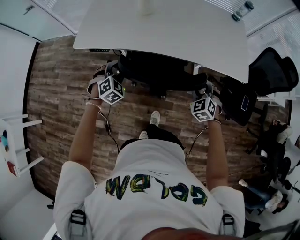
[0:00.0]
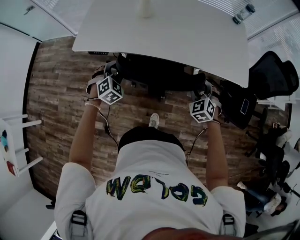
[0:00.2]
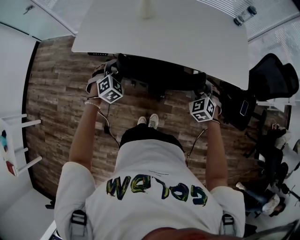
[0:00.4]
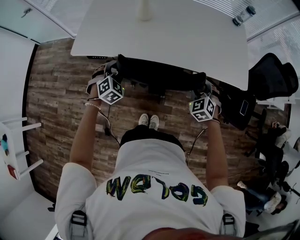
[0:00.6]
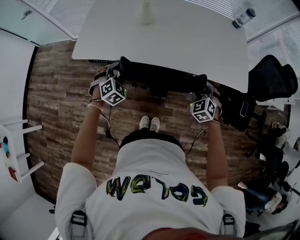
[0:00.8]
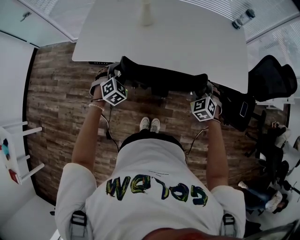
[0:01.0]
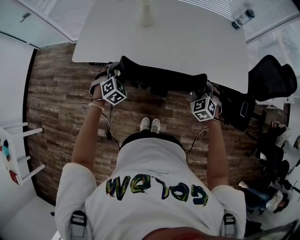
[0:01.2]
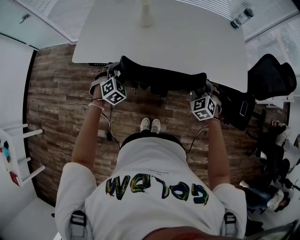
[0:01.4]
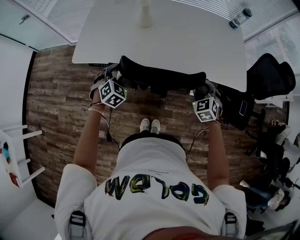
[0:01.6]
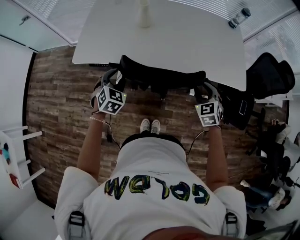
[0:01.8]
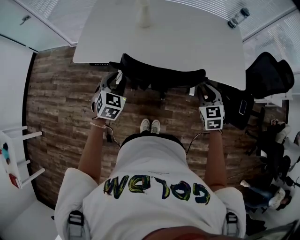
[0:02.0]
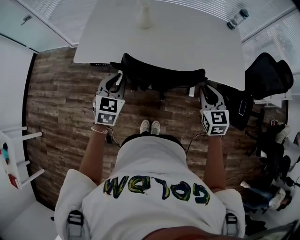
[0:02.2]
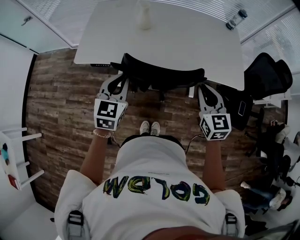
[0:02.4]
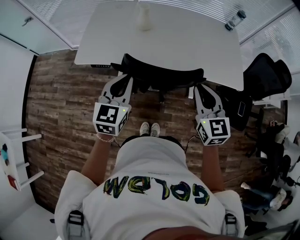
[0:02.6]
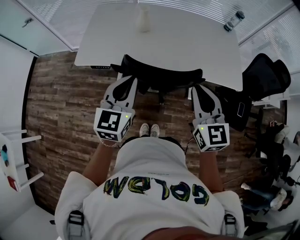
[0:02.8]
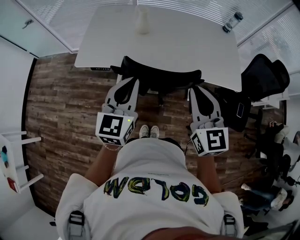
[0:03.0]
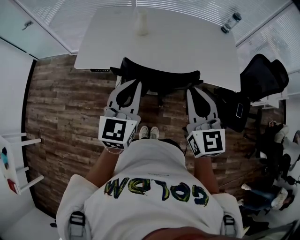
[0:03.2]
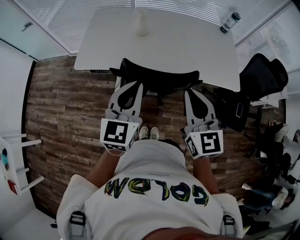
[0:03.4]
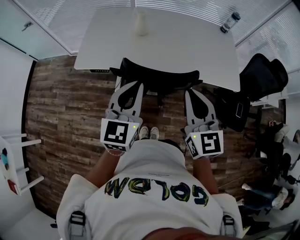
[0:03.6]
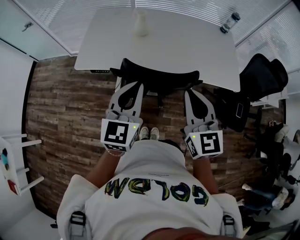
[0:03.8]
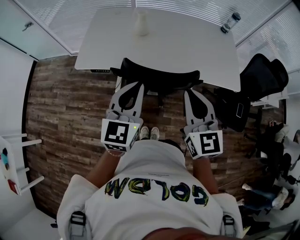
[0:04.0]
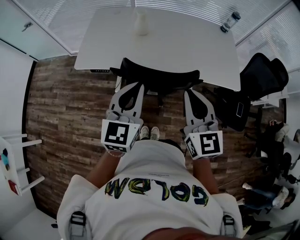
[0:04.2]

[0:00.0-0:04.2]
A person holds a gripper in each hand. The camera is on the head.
0:00.0 to 0:01.4: The two grippers go roughly 10 cm forward.
0:01.4 to 0:02.8: Both grippers travel together upward and backward, about 25 cm. The left gripper points its fingers roughly 30 degrees further upward, and closes its fingers, while the right gripper tips its fingers upward by roughly 30 degrees, and closes up.
0:02.8 to 0:04.2: The grippers make only small movements.

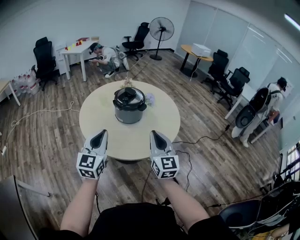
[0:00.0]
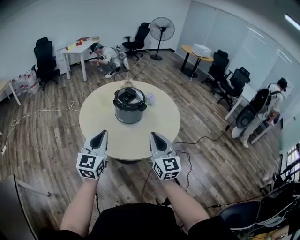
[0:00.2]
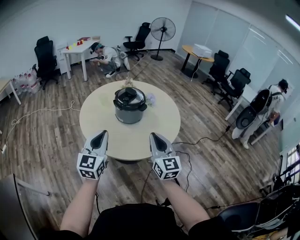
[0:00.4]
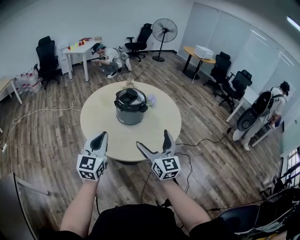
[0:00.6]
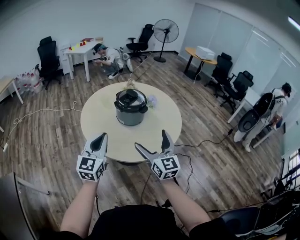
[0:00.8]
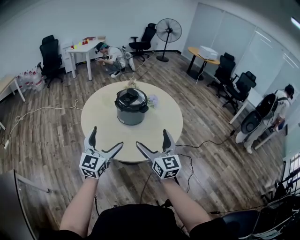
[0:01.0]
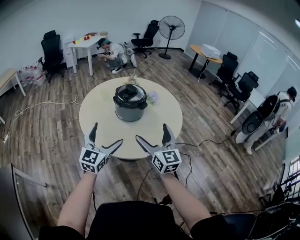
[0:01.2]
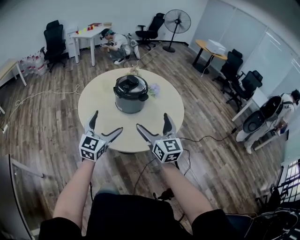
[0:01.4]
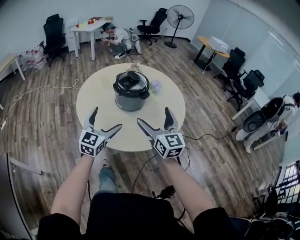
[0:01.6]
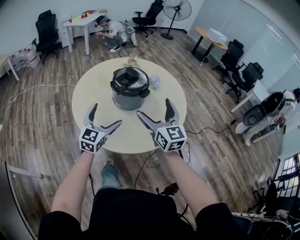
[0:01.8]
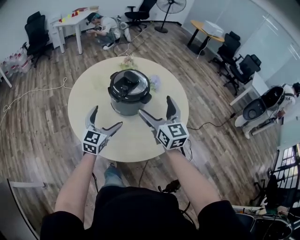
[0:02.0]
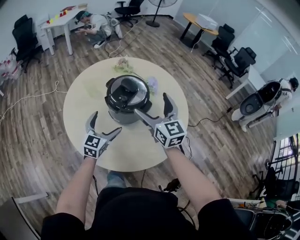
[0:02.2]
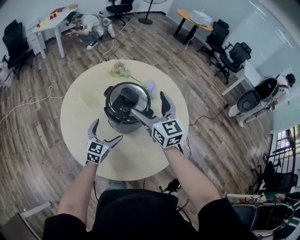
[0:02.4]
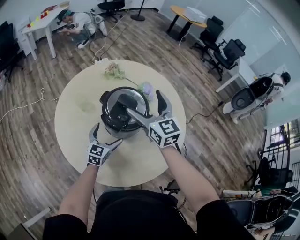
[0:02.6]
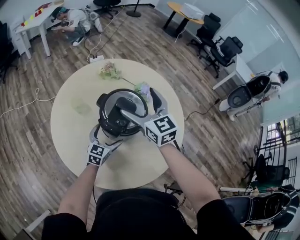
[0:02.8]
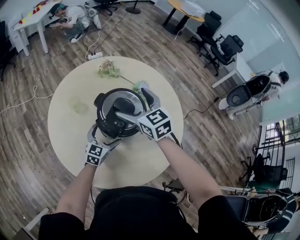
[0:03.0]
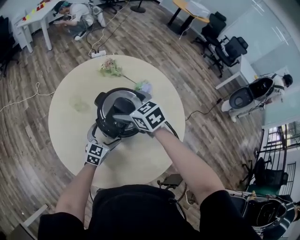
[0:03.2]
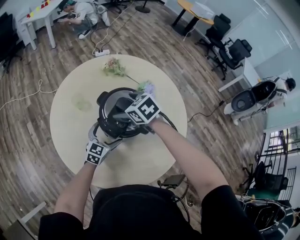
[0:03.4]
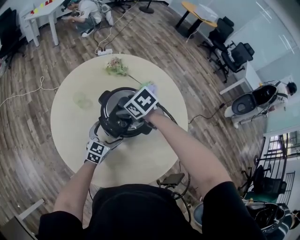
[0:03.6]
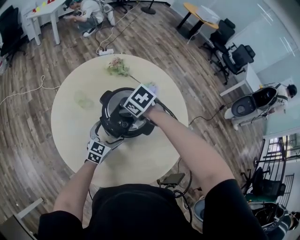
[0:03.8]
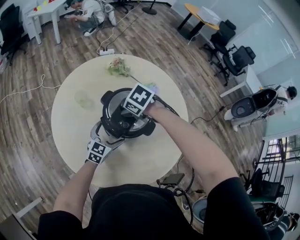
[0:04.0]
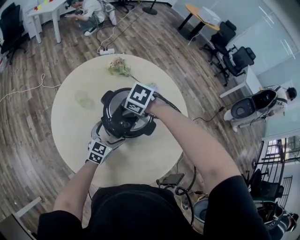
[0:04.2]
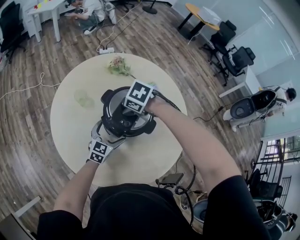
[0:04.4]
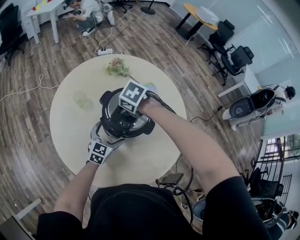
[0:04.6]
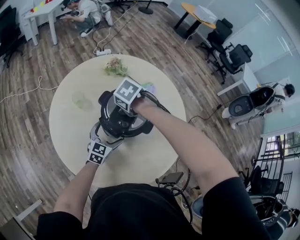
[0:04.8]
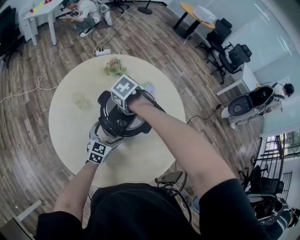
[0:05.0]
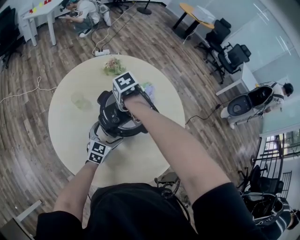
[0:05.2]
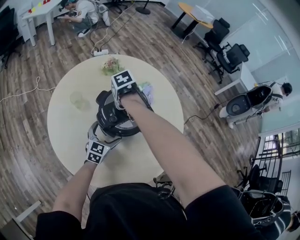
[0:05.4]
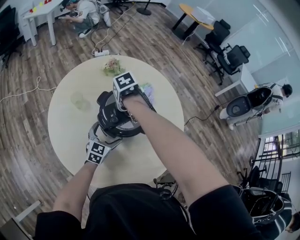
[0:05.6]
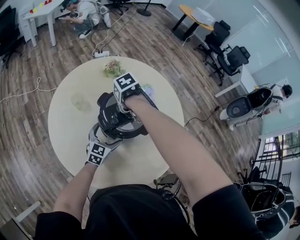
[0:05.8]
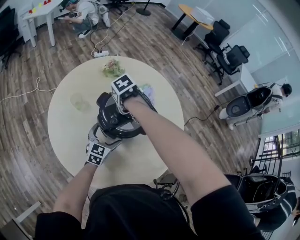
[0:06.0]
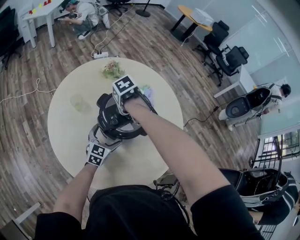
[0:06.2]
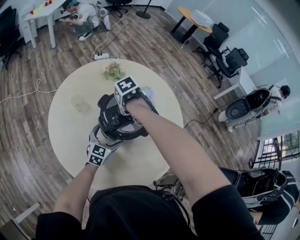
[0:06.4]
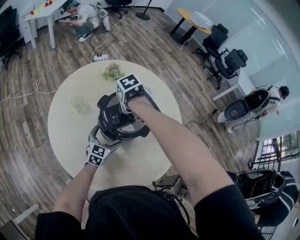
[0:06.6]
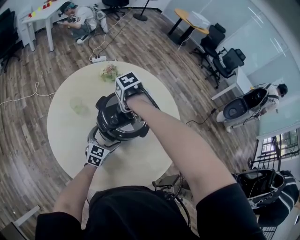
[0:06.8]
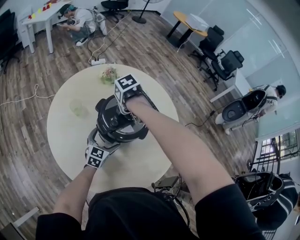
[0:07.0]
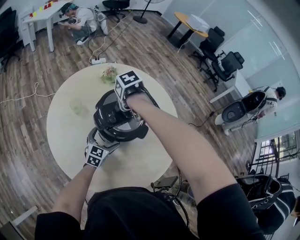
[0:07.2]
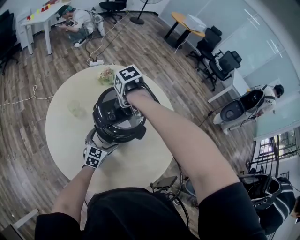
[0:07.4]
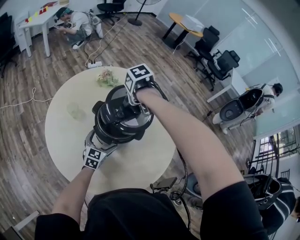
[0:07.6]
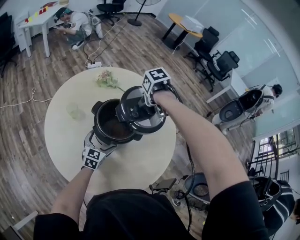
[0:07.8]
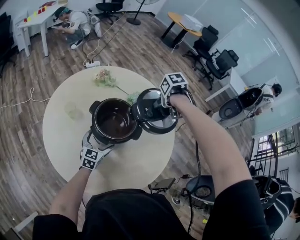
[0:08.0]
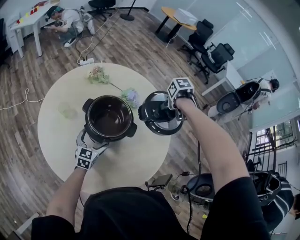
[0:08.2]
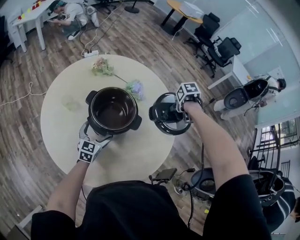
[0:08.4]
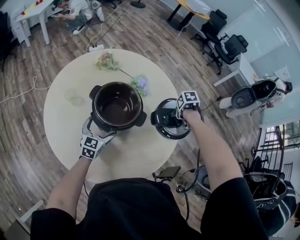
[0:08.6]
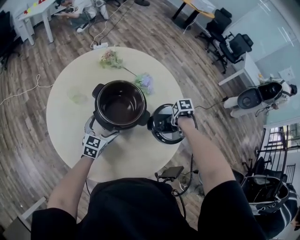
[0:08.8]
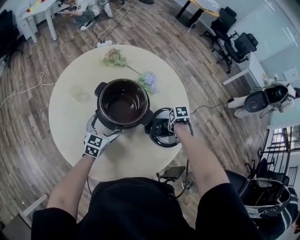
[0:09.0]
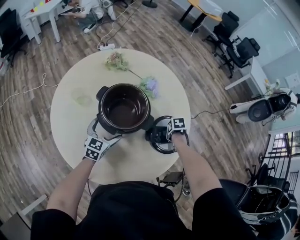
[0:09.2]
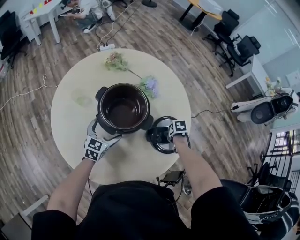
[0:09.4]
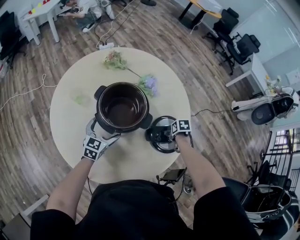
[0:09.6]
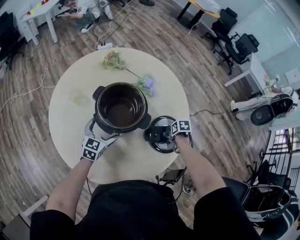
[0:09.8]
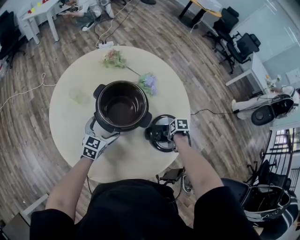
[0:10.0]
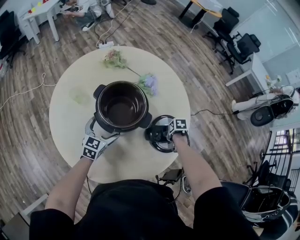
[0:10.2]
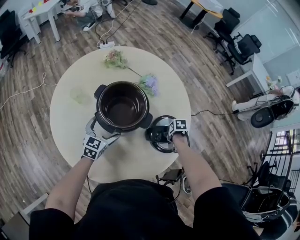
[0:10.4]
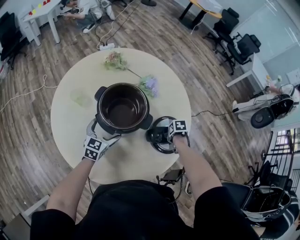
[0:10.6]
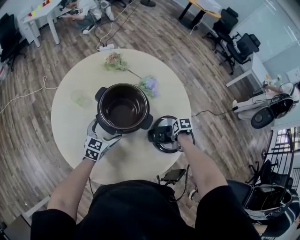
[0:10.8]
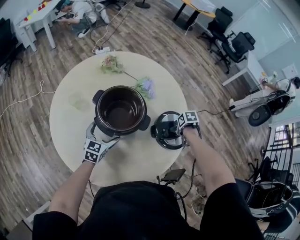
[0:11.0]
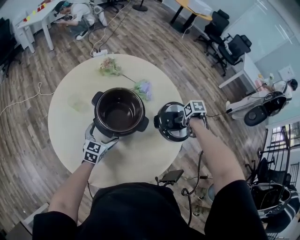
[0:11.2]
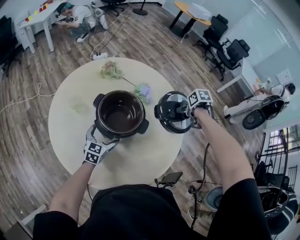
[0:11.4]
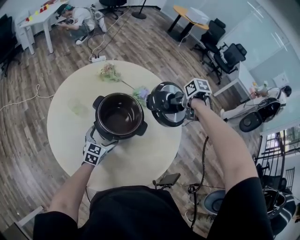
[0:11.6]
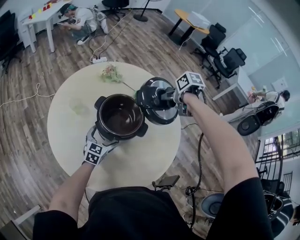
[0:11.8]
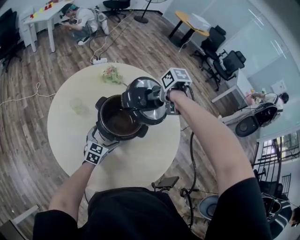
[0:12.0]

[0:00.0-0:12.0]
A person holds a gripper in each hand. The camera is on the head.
0:00.0 to 0:01.6: The left gripper shifts roughly 15 cm forward, downward and to the right, and opens. The right gripper is displaced forward by roughly 10 cm, and opens its fingers.
0:01.6 to 0:03.0: The right gripper travels forward and to the left by roughly 40 cm, and turns by about 30 degrees; the left gripper goes approximately 40 cm forward and downward, and swivels approximately 30 degrees.
0:03.0 to 0:04.4: The right gripper goes approximately 10 cm downward, tips its fingers downward by some 50 degrees, and closes up.
0:04.4 to 0:06.0: The right gripper changes its angle by about 40 degrees.
0:06.0 to 0:07.6: The right gripper travels upward by some 10 cm.
0:07.6 to 0:09.0: The right gripper changes place by about 35 cm, and rotates some 20 degrees.
0:09.0 to 0:10.4: The right gripper is displaced downward by about 5 cm.
0:10.4 to 0:12.0: The right gripper shifts roughly 30 cm upward, and changes its angle by approximately 20 degrees.

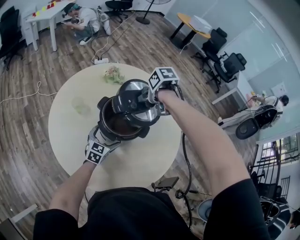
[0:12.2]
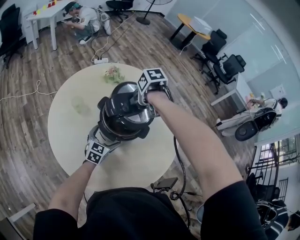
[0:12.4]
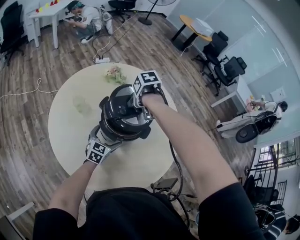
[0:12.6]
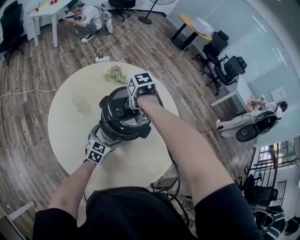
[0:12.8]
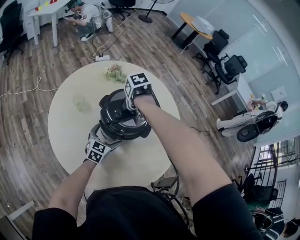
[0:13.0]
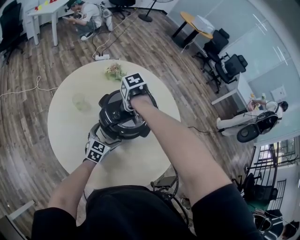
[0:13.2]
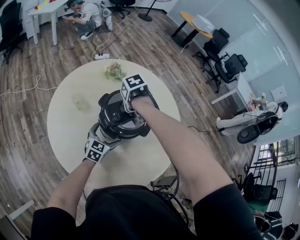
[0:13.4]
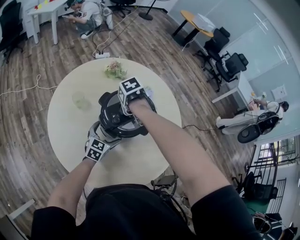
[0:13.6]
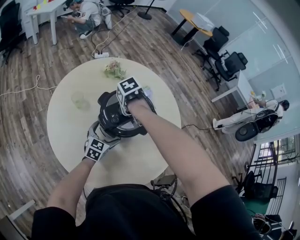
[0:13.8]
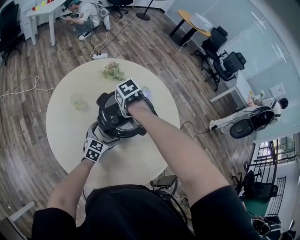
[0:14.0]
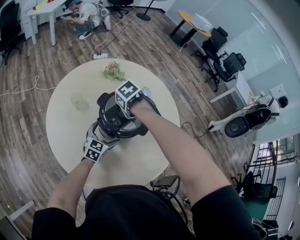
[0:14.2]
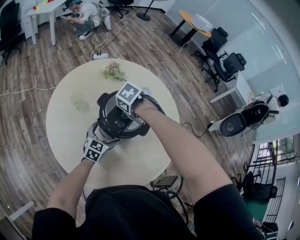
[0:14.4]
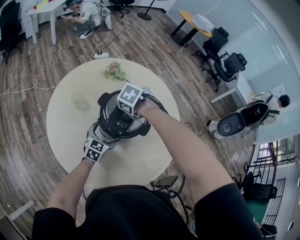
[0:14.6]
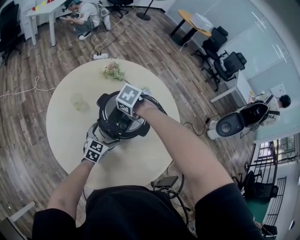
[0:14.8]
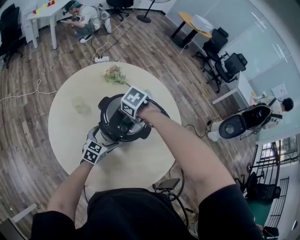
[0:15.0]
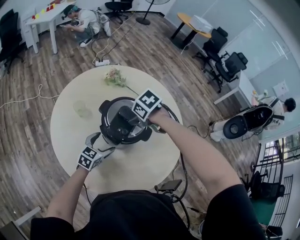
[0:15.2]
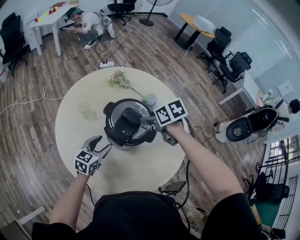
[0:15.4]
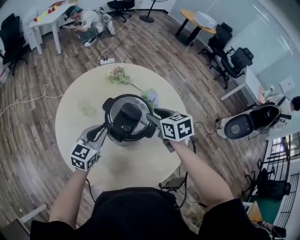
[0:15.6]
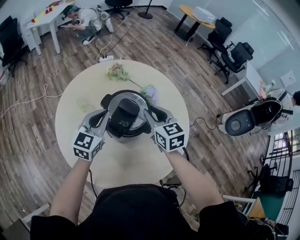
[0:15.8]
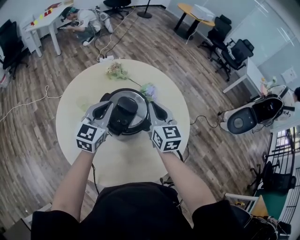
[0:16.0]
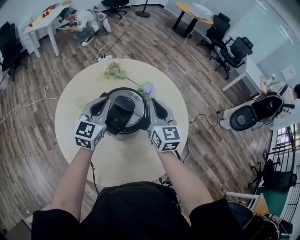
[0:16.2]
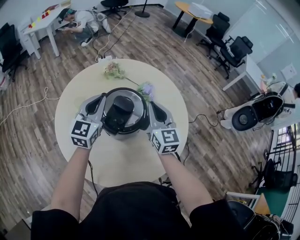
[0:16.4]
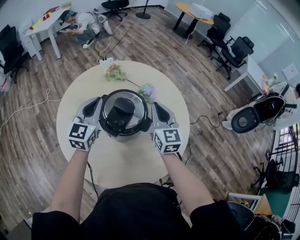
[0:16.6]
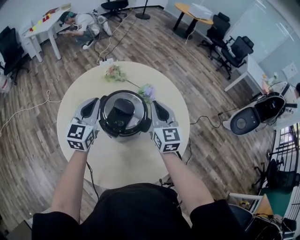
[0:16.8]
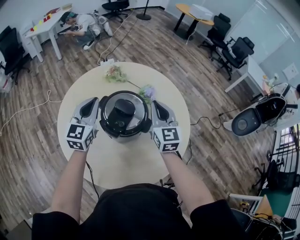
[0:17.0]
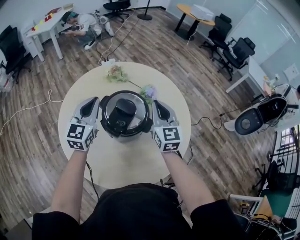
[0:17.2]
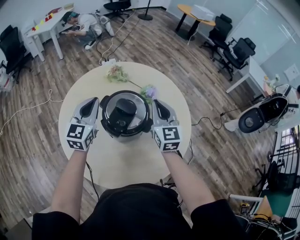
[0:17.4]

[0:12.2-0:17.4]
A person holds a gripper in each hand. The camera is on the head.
0:12.2 to 0:14.0: The right gripper moves some 10 cm, and rotates approximately 20 degrees.
0:14.0 to 0:15.6: The two grippers go roughly 10 cm upward. The right gripper tilts its fingers roughly 40 degrees upward; the left gripper closes.
0:15.6 to 0:17.4: The right gripper ends up about 5 cm from where it was, and tilts its fingers some 30 degrees upward. The left gripper goes some 10 cm upward and forward.

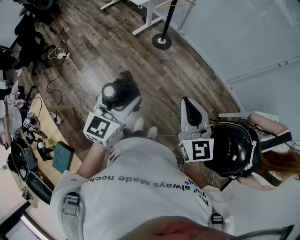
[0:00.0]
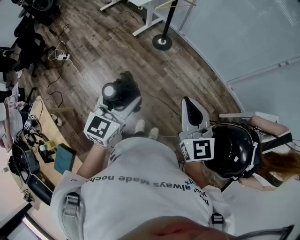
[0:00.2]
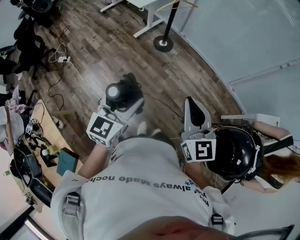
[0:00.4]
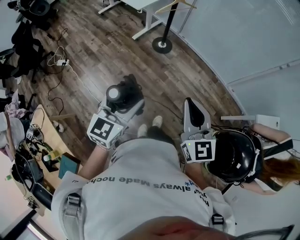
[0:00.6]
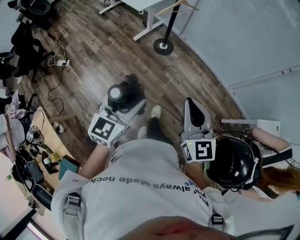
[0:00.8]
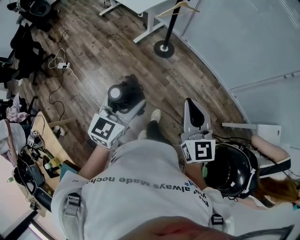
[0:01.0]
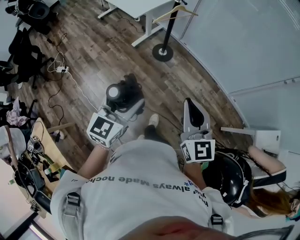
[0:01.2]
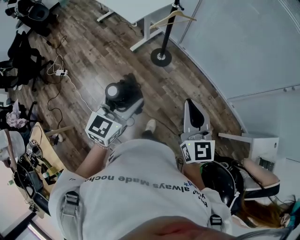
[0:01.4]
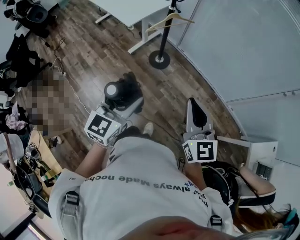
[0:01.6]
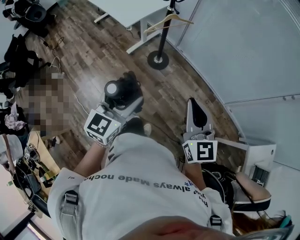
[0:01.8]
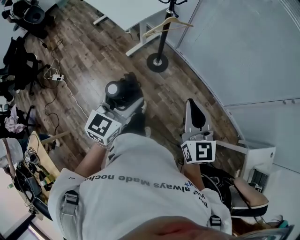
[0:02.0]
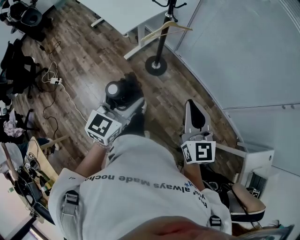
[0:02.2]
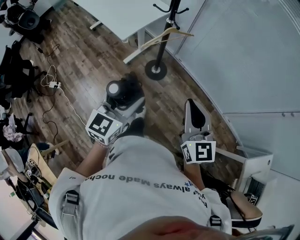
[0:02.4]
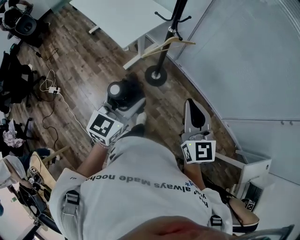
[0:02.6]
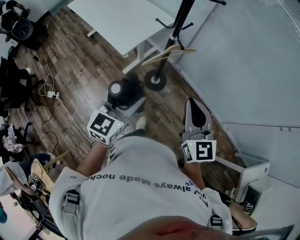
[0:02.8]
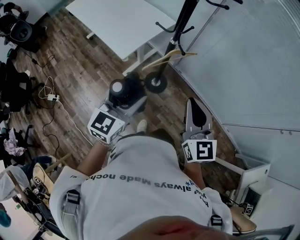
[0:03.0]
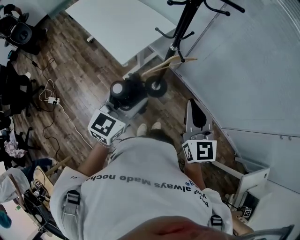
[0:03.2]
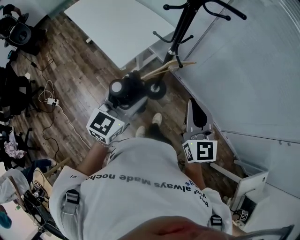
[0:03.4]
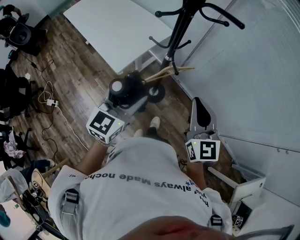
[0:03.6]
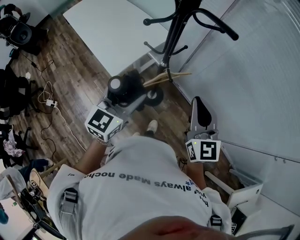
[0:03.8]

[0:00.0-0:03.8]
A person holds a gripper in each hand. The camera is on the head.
0:00.0 to 0:01.2: Both grippers travel together forward, roughly 25 cm.
0:01.2 to 0:02.6: The two grippers travel together, forward, some 40 cm.
0:02.6 to 0:03.8: The two grippers go approximately 35 cm forward.
